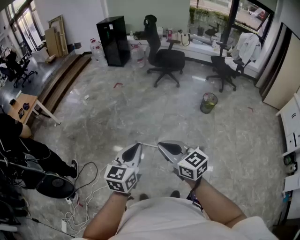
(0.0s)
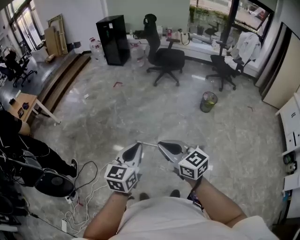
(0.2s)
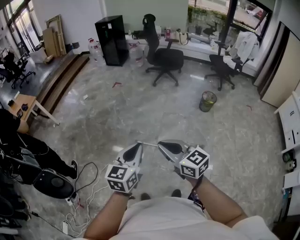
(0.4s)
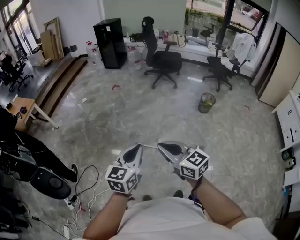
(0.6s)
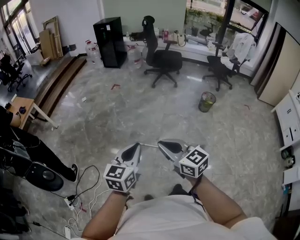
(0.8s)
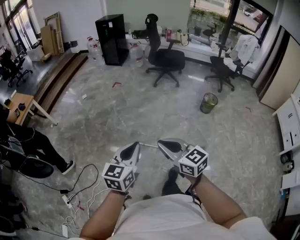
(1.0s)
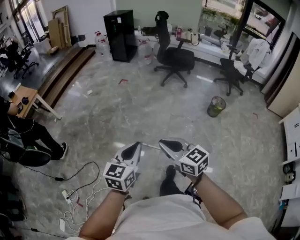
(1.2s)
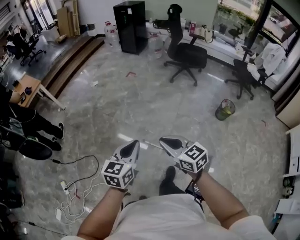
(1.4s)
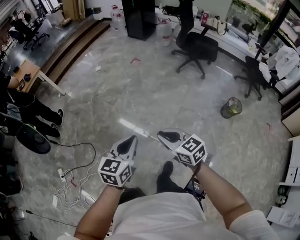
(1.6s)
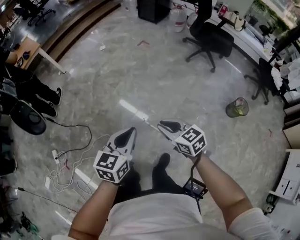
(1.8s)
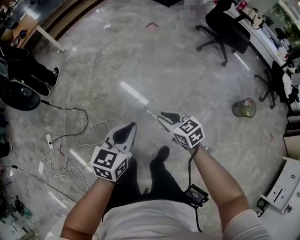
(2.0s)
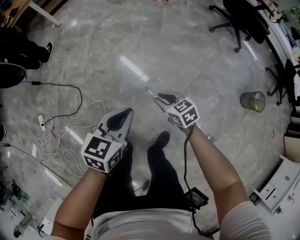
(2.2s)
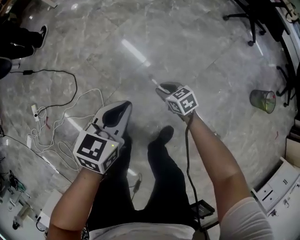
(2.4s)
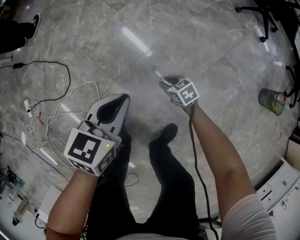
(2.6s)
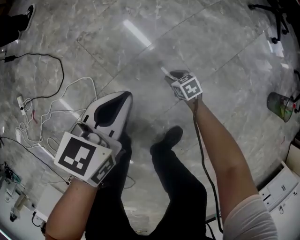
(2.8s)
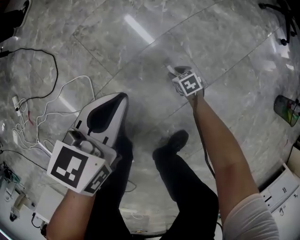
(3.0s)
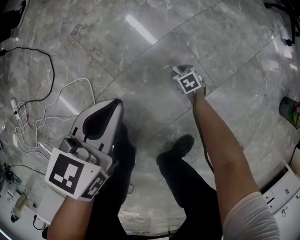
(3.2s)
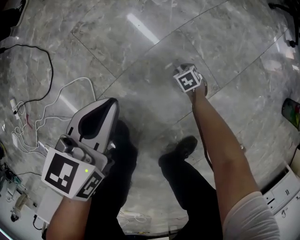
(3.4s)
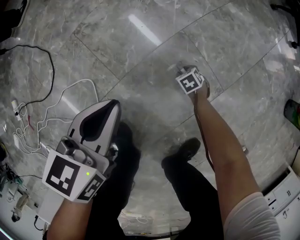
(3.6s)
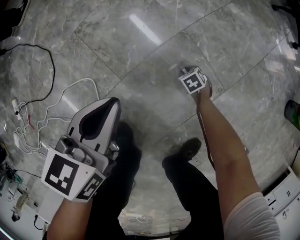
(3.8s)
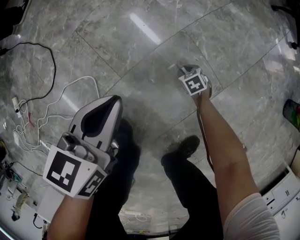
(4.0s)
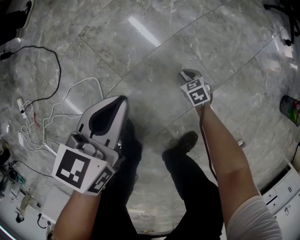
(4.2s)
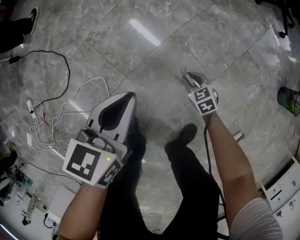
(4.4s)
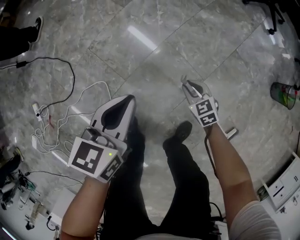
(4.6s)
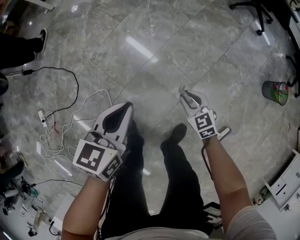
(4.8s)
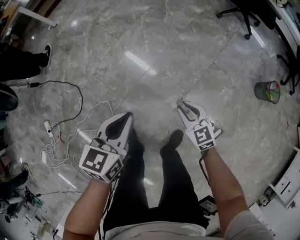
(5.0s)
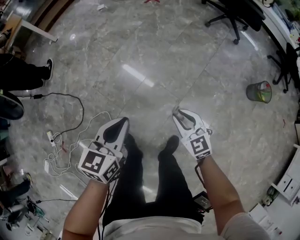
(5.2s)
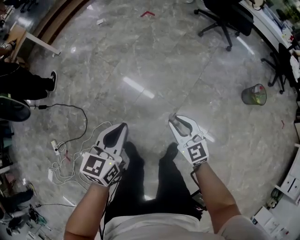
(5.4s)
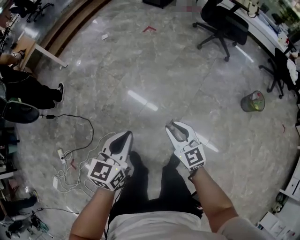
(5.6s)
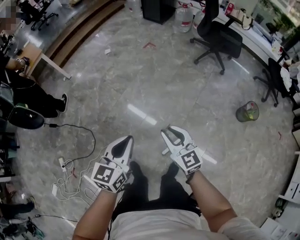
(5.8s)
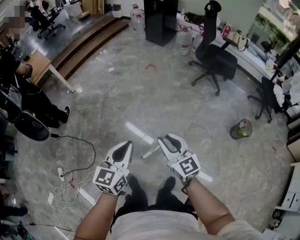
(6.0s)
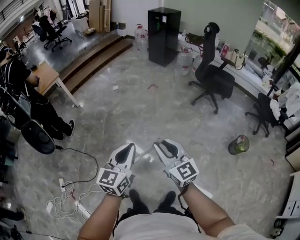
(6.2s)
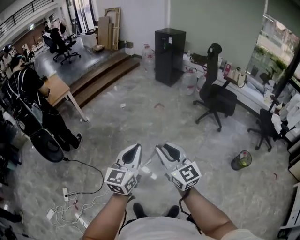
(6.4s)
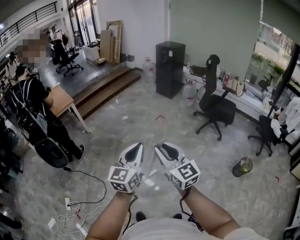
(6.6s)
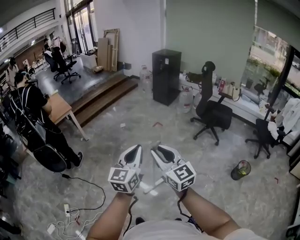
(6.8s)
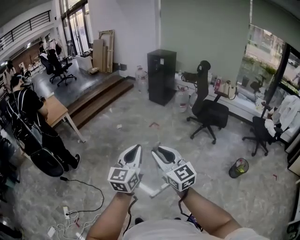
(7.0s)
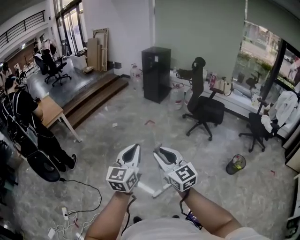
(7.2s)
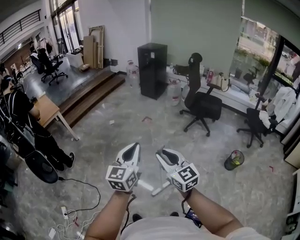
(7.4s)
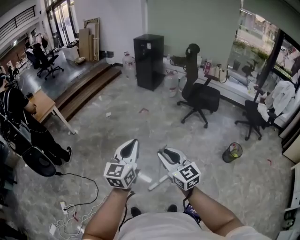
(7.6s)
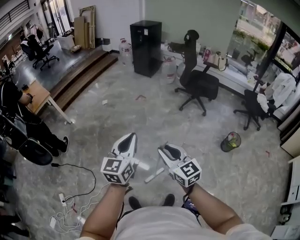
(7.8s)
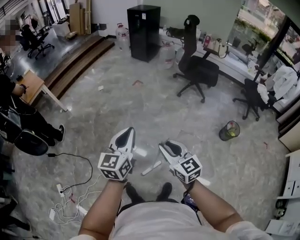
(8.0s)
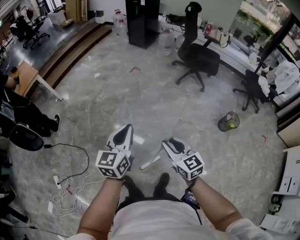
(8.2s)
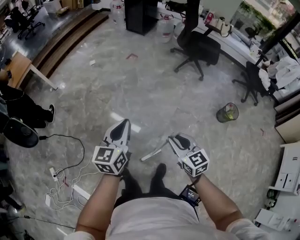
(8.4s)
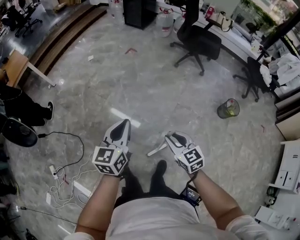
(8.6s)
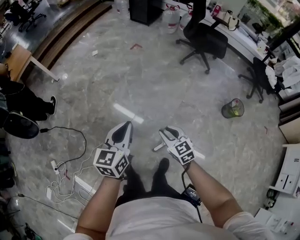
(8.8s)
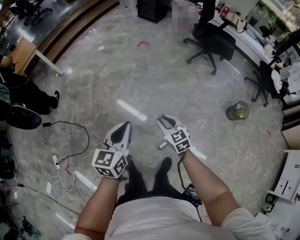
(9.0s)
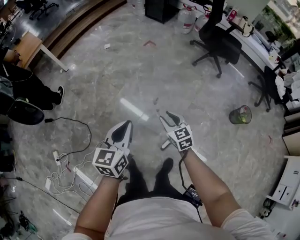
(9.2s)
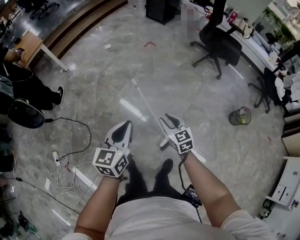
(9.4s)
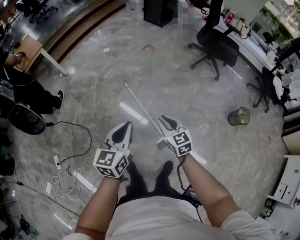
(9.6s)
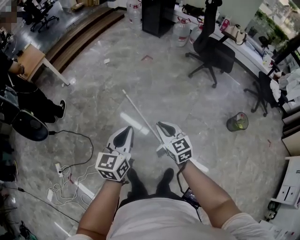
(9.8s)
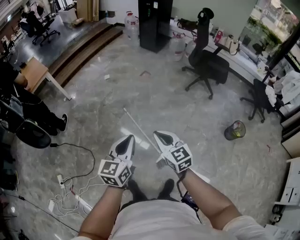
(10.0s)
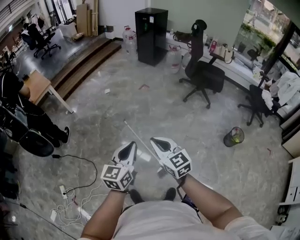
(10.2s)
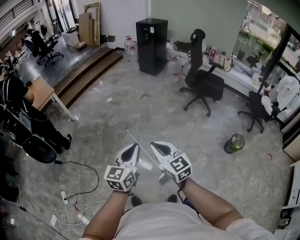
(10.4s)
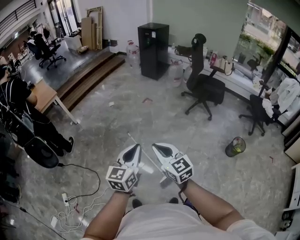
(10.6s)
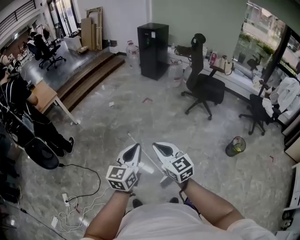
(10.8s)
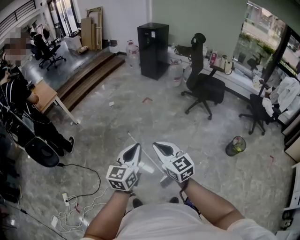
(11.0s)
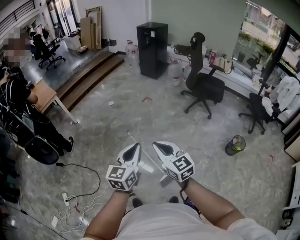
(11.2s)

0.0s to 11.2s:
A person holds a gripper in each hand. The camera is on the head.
0.0s to 1.6s: Both grippers travel together forward and downward, approximately 30 cm. The right gripper turns by roughly 20 degrees.
1.6s to 3.2s: The left gripper goes some 70 cm downward, and rotates some 20 degrees, while the right gripper moves downward, approximately 1 m, tips its fingers downward by roughly 50 degrees, and opens its fingers.
3.2s to 4.8s: The right gripper moves upward, roughly 50 cm, and turns by roughly 30 degrees, while the left gripper moves upward, some 30 cm.
4.8s to 6.4s: Both grippers move upward, roughly 70 cm. The left gripper swivels approximately 30 degrees. Meanwhile the right gripper tilts its fingers about 40 degrees upward.
6.4s to 8.0s: The left gripper travels to the right and downward by roughly 10 cm. Meanwhile the right gripper moves downward and to the right, some 15 cm.
8.0s to 9.6s: The right gripper is displaced downward and forward by some 20 cm. The left gripper goes some 15 cm downward and to the left.
9.6s to 11.2s: The right gripper heads upward, covering about 25 cm. Meanwhile the left gripper travels upward by roughly 15 cm.

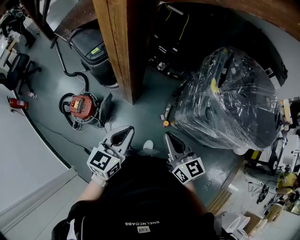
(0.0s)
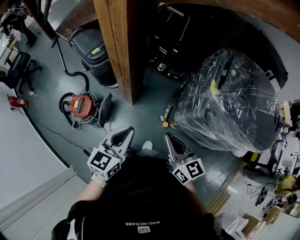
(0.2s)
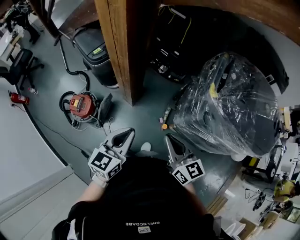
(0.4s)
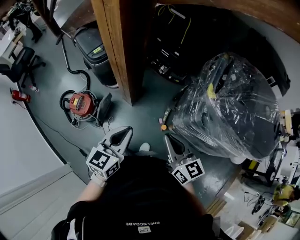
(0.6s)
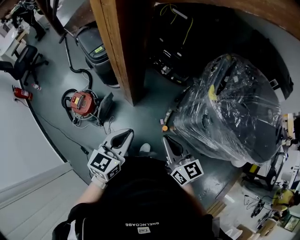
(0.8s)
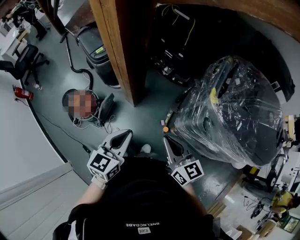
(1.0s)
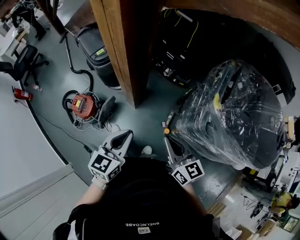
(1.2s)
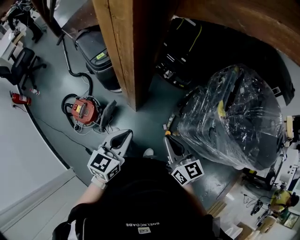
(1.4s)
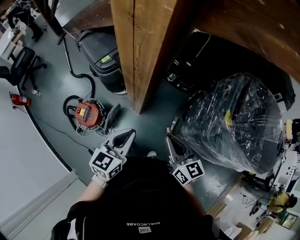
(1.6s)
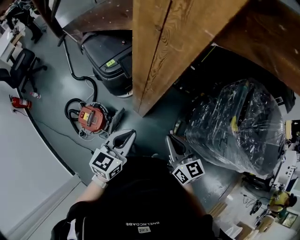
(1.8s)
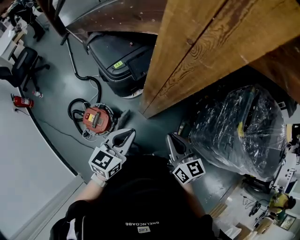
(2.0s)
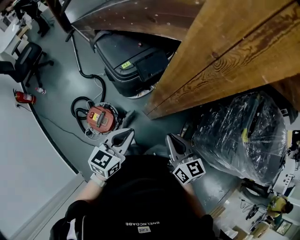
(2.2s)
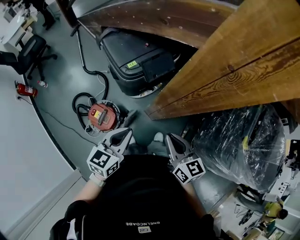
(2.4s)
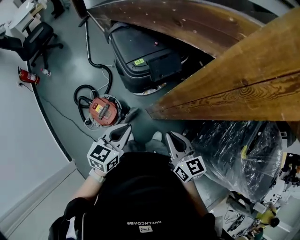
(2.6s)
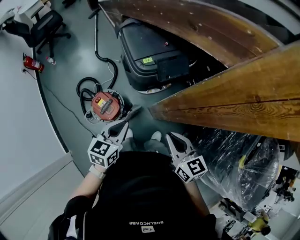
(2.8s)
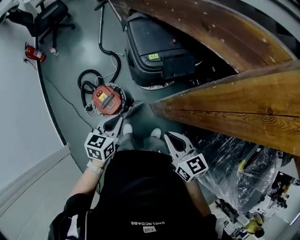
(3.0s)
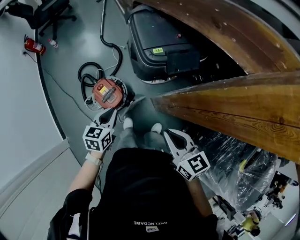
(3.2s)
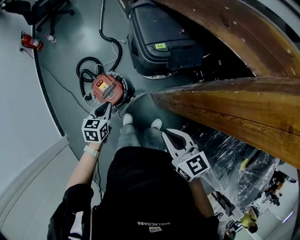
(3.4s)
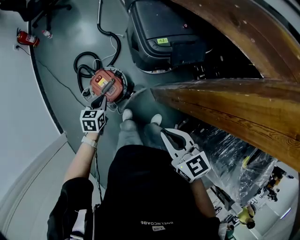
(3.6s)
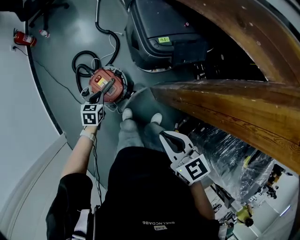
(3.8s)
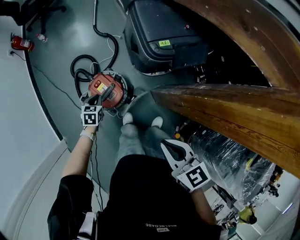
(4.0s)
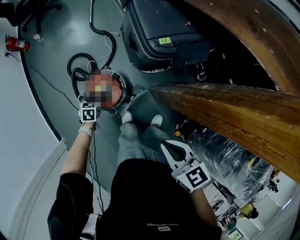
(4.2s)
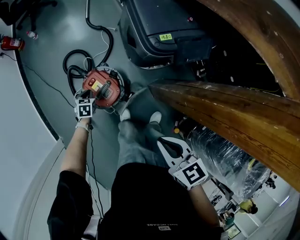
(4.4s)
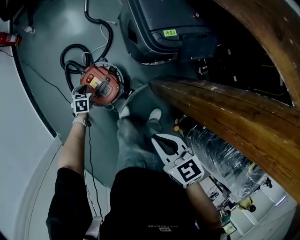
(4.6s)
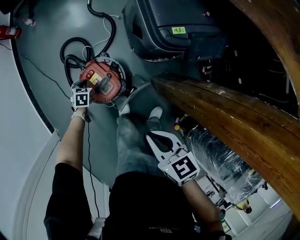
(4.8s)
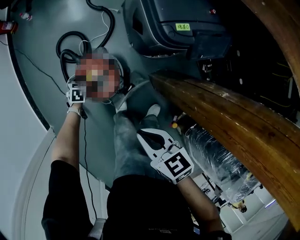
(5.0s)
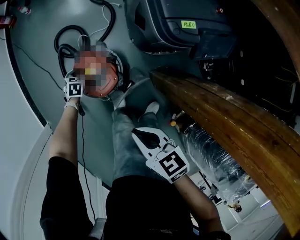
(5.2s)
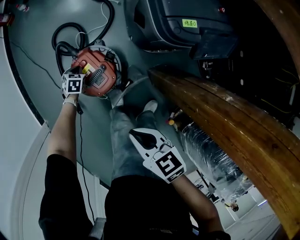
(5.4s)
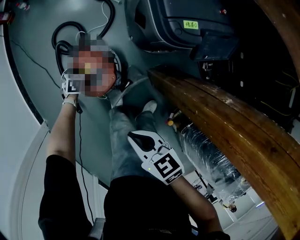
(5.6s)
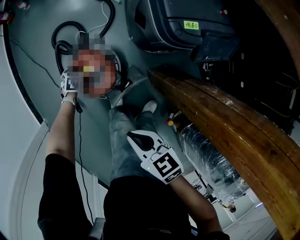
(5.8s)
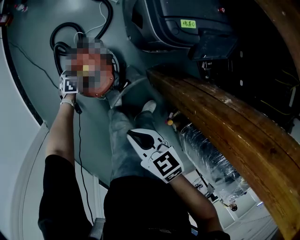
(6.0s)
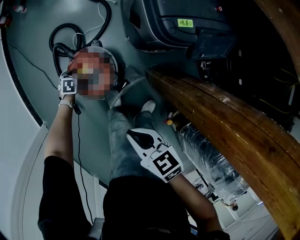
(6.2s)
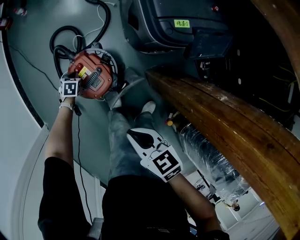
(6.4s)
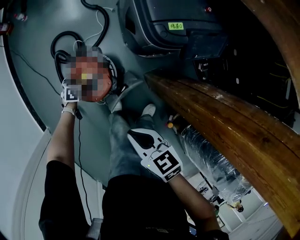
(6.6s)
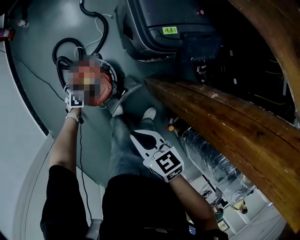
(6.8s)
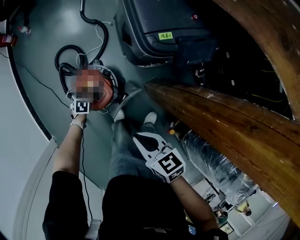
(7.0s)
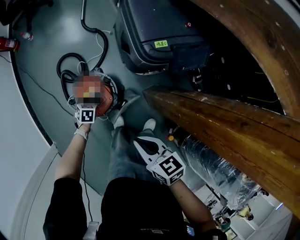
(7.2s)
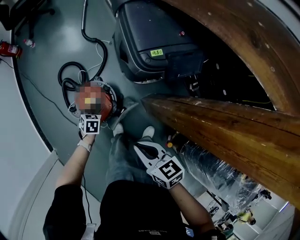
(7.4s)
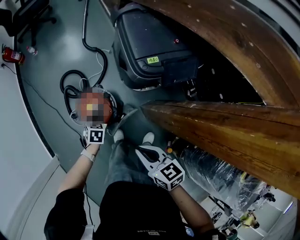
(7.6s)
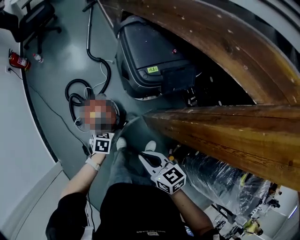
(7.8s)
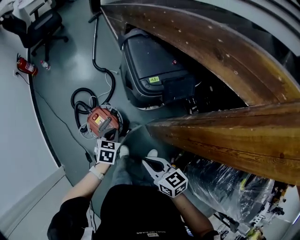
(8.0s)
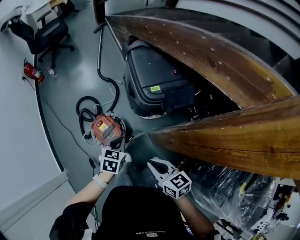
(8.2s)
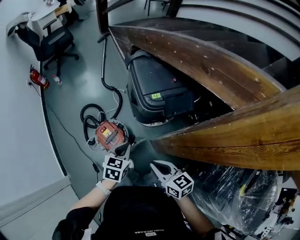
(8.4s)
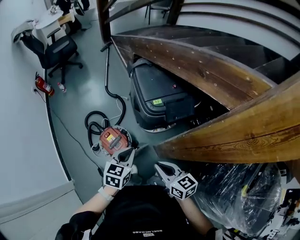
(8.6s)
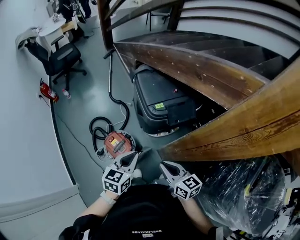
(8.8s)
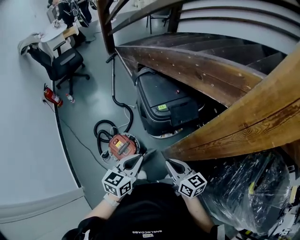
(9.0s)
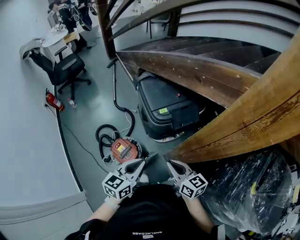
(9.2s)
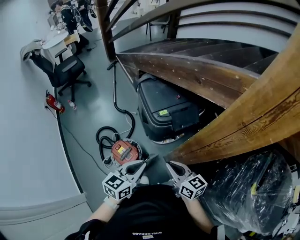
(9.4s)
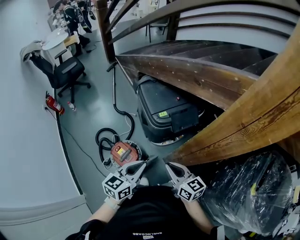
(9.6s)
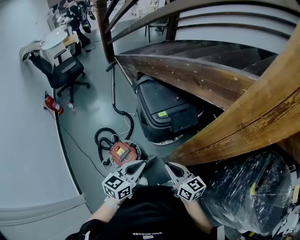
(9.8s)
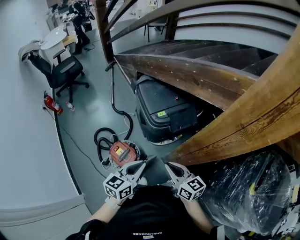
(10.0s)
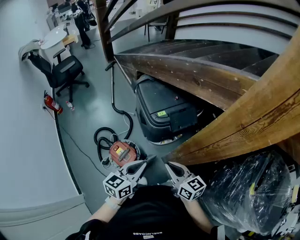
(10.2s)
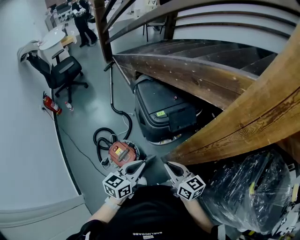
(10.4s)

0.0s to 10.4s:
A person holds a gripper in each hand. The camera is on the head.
0.0s to 1.4s: The two grippers go about 10 cm forward.
1.4s to 3.0s: The right gripper shifts by about 35 cm, and changes its angle by approximately 30 degrees; the left gripper ends up roughly 35 cm from where it was, and changes its angle by about 30 degrees.
3.0s to 4.4s: The right gripper heads downward, to the left and forward, covering roughly 15 cm, while the left gripper travels downward, to the left and forward by approximately 50 cm, and tips its fingers downward by about 30 degrees.
4.4s to 6.0s: Both grippers travel together downward, about 15 cm.
6.0s to 7.4s: The left gripper is displaced upward, to the right and backward by roughly 25 cm; the right gripper travels upward by approximately 10 cm.
7.4s to 9.0s: The left gripper goes some 50 cm upward, and points its fingers about 50 degrees further upward; the right gripper travels upward and to the right by about 20 cm, and changes its angle by approximately 30 degrees.
9.0s to 10.4s: The grippers stay close to where they were, moving slightly.

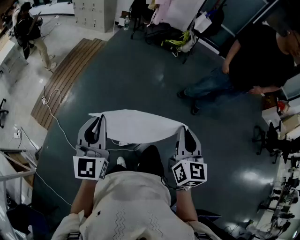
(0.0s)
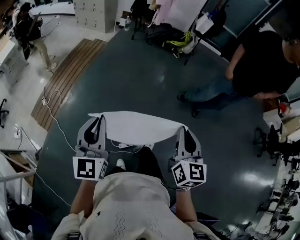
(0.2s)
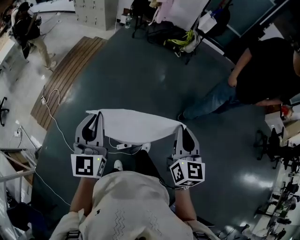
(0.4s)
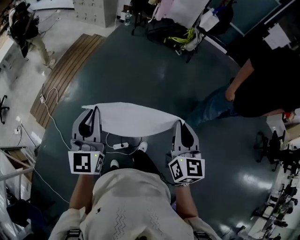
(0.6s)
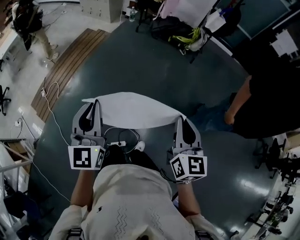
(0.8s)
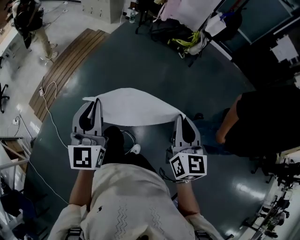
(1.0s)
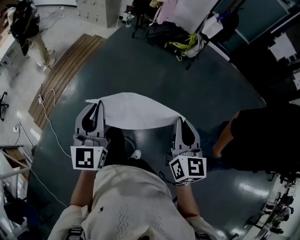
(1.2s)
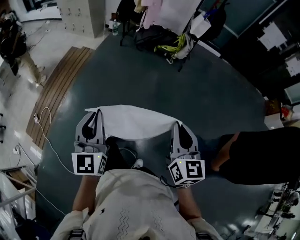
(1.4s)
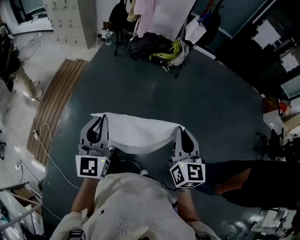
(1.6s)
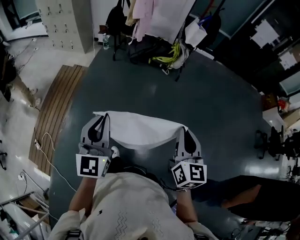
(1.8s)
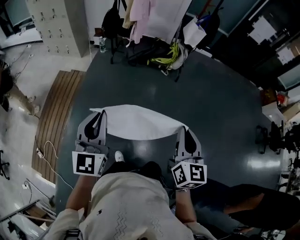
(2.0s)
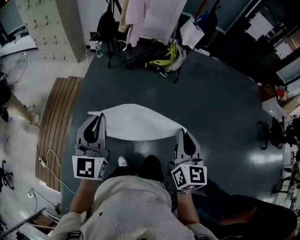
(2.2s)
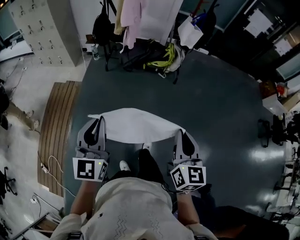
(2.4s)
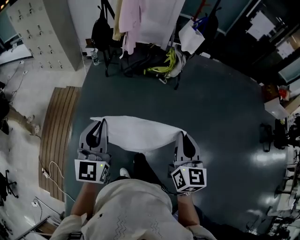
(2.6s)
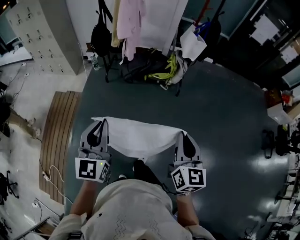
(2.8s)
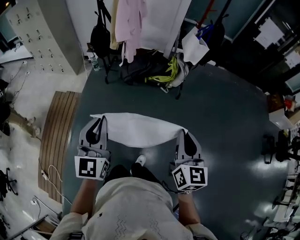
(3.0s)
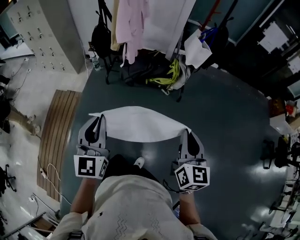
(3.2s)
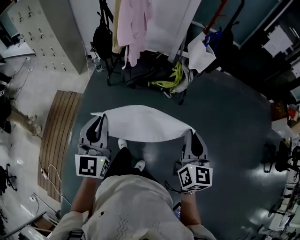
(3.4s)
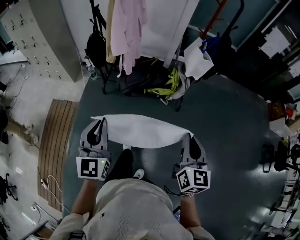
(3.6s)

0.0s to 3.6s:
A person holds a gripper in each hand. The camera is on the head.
0.0s to 1.8s: Both grippers are carried forward, roughly 50 cm.
1.8s to 3.6s: The pair of grippers is taken forward, about 50 cm.
